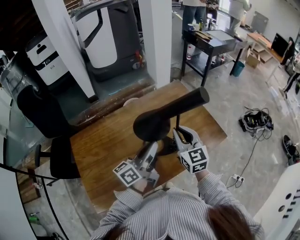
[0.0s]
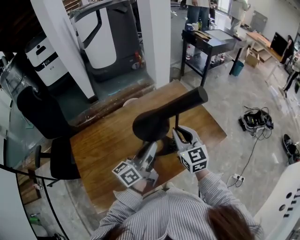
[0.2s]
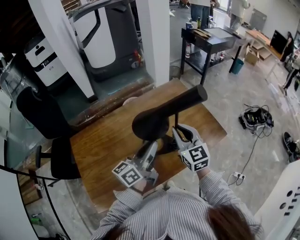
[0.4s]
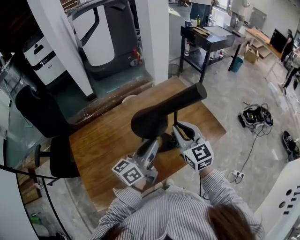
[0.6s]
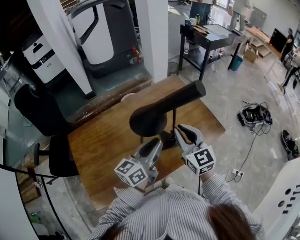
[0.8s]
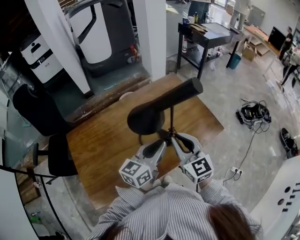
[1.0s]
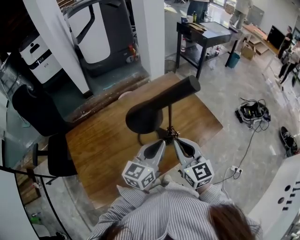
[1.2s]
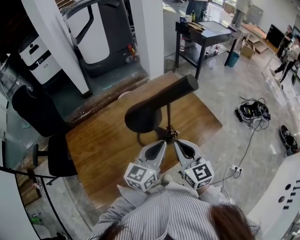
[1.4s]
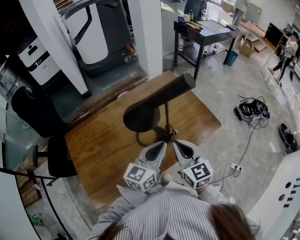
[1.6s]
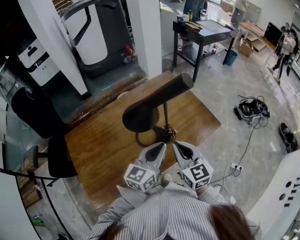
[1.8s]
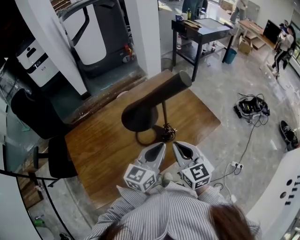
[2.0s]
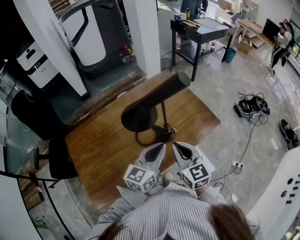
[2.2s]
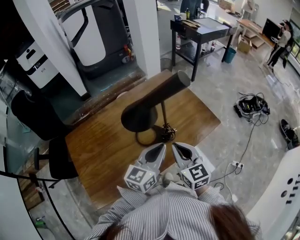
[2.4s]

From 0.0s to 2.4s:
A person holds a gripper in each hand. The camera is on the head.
From 0.0s to 1.2s: The right gripper moves backward, about 10 cm; the left gripper heads to the right, covering some 5 cm, and swivels about 30 degrees.
From 1.2s to 2.4s: The grippers move only a little.

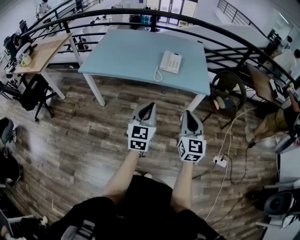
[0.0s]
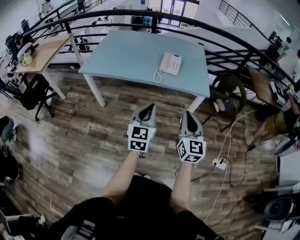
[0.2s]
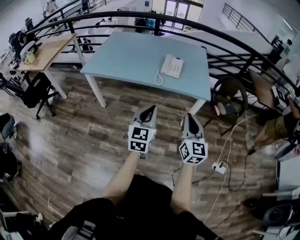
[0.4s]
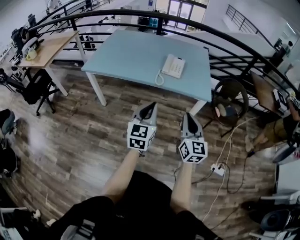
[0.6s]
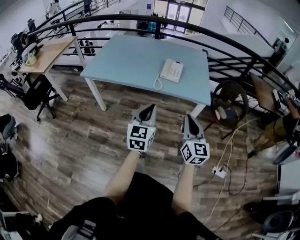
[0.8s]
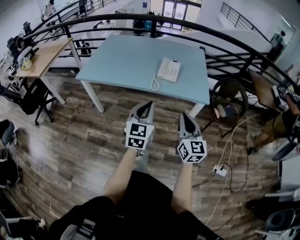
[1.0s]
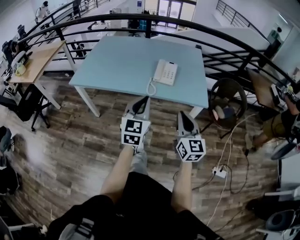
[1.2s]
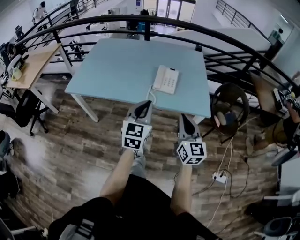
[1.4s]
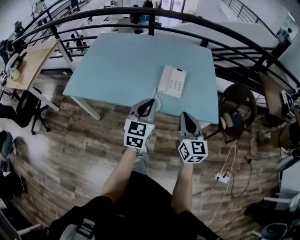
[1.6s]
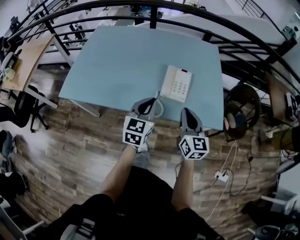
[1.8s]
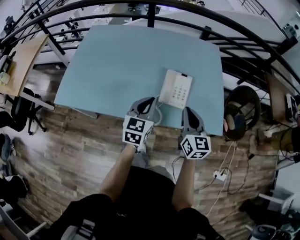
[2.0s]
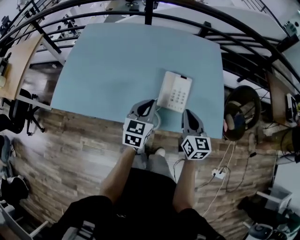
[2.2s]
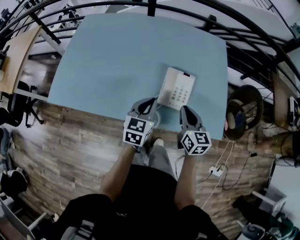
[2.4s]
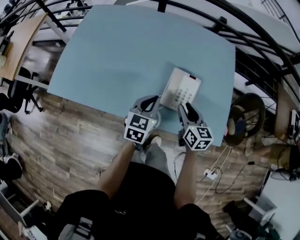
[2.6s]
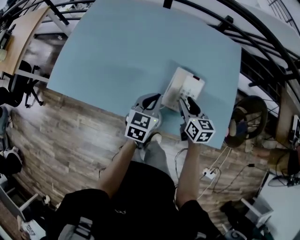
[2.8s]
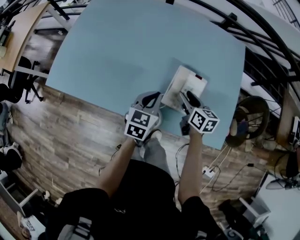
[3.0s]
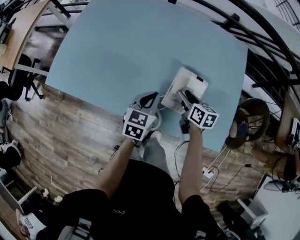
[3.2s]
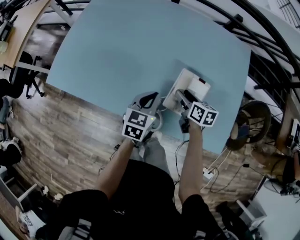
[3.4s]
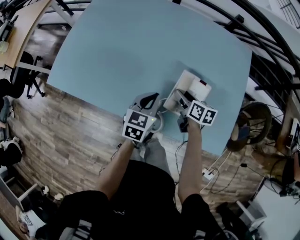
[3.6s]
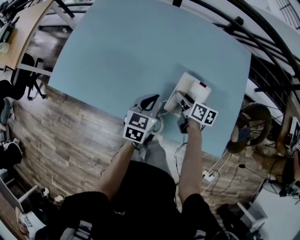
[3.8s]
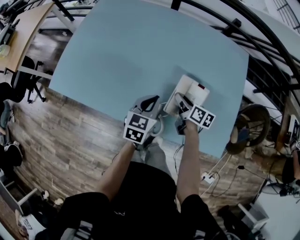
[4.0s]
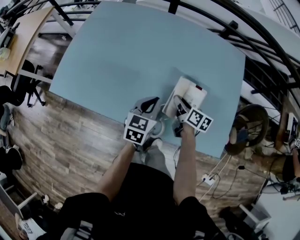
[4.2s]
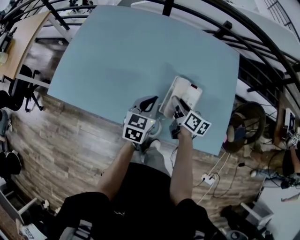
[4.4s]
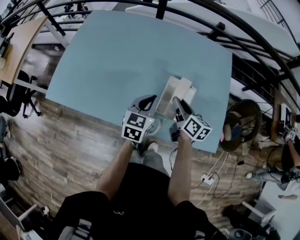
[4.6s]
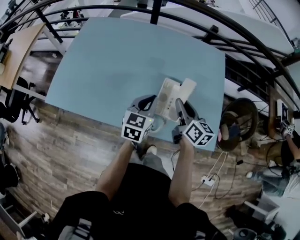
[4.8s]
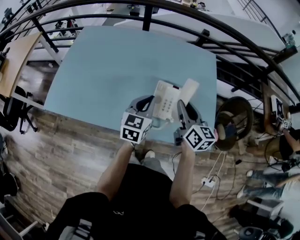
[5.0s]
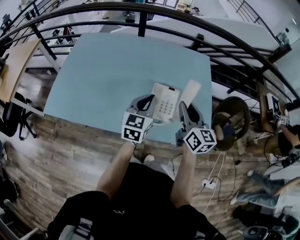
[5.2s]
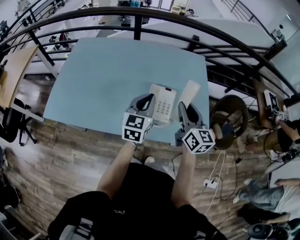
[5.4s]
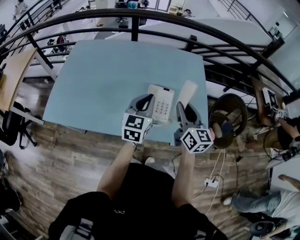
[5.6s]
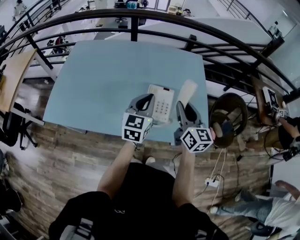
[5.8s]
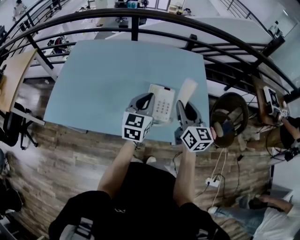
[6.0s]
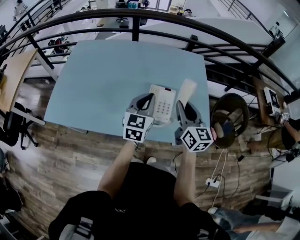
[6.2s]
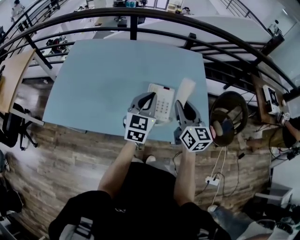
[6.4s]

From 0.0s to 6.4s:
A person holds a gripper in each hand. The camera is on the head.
From 0.0s to 1.6s: Both grippers travel together forward, roughly 30 cm.
From 1.6s to 3.2s: The two grippers go about 35 cm forward and downward. The left gripper turns by roughly 30 degrees; the right gripper angles its fingers downward, by some 30 degrees, and opens.
From 3.2s to 4.8s: The right gripper is displaced upward by some 15 cm, swivels roughly 20 degrees, and closes up, while the left gripper shifts some 10 cm upward.
From 4.8s to 6.4s: The left gripper moves upward, about 10 cm, while the right gripper travels upward and backward by about 10 cm, and swivels some 30 degrees.

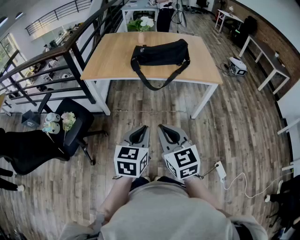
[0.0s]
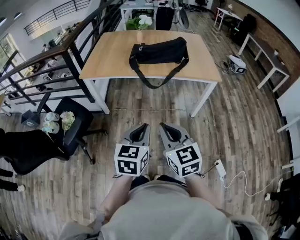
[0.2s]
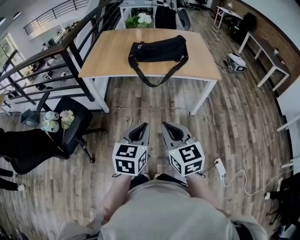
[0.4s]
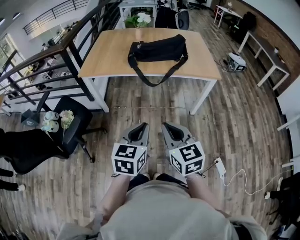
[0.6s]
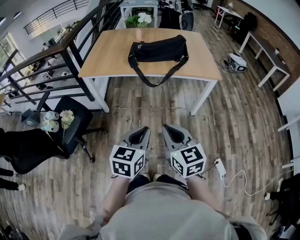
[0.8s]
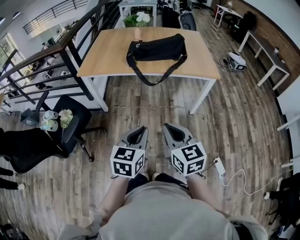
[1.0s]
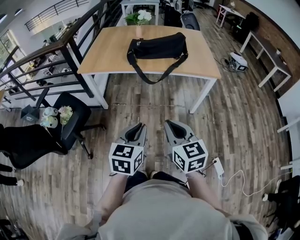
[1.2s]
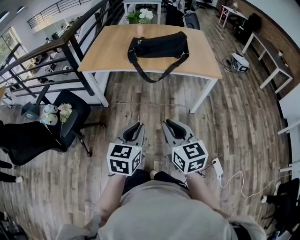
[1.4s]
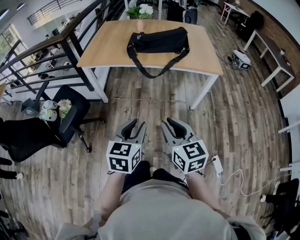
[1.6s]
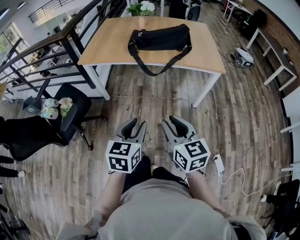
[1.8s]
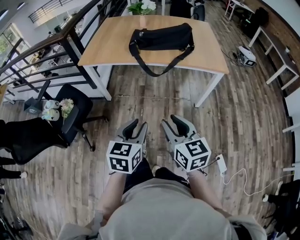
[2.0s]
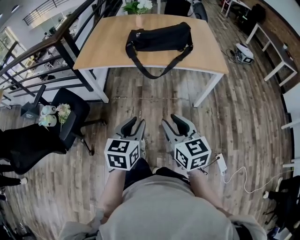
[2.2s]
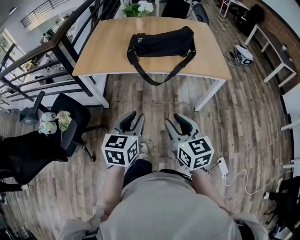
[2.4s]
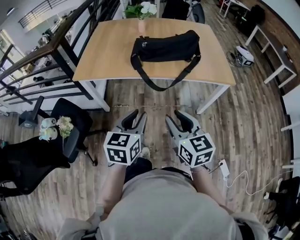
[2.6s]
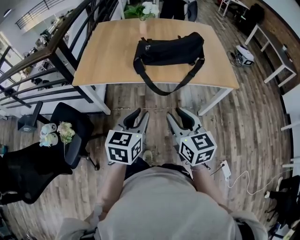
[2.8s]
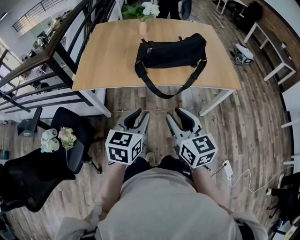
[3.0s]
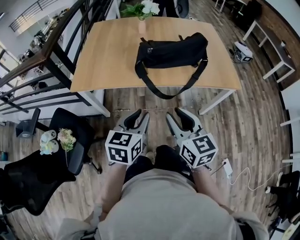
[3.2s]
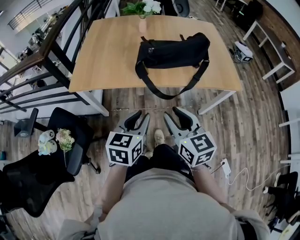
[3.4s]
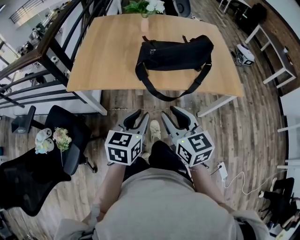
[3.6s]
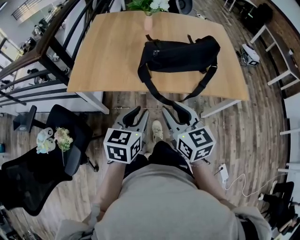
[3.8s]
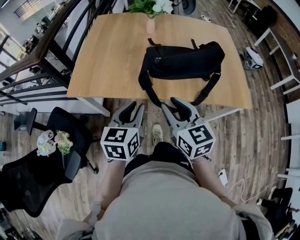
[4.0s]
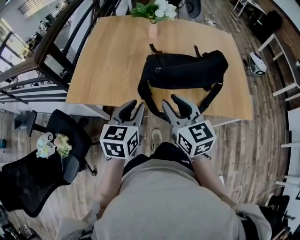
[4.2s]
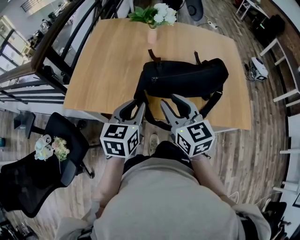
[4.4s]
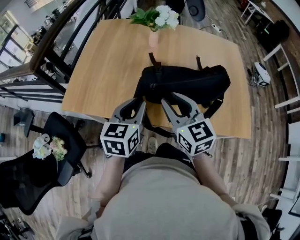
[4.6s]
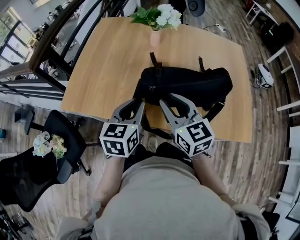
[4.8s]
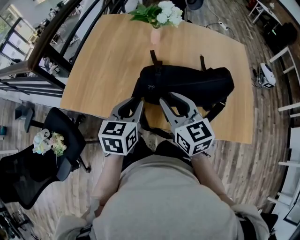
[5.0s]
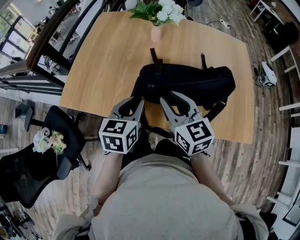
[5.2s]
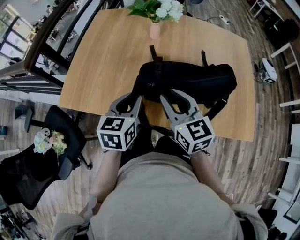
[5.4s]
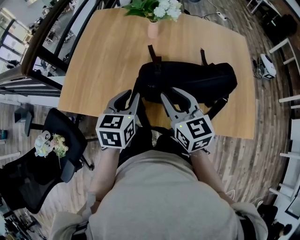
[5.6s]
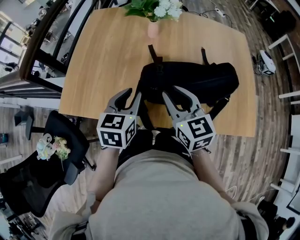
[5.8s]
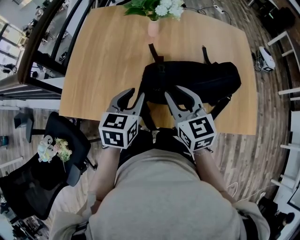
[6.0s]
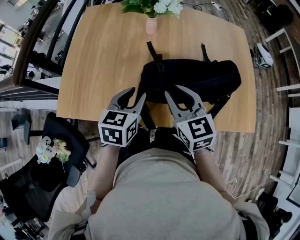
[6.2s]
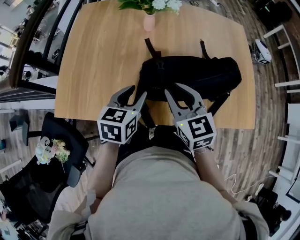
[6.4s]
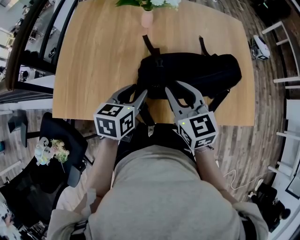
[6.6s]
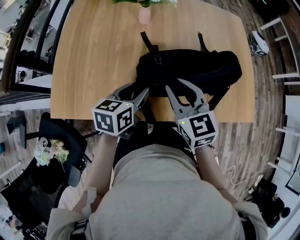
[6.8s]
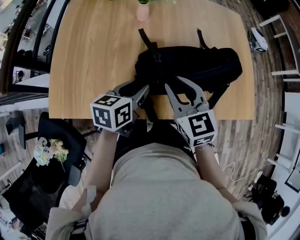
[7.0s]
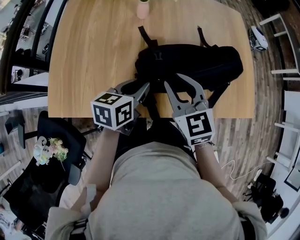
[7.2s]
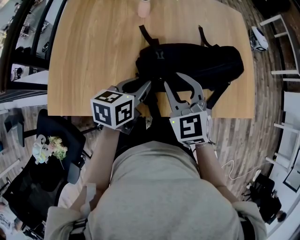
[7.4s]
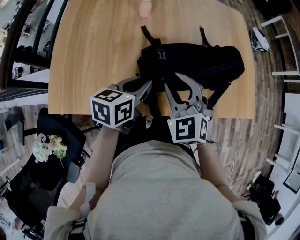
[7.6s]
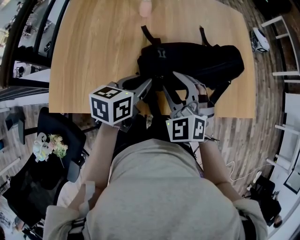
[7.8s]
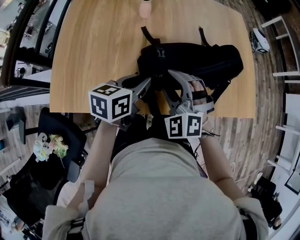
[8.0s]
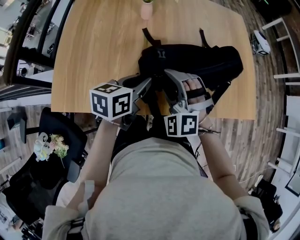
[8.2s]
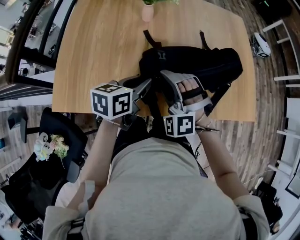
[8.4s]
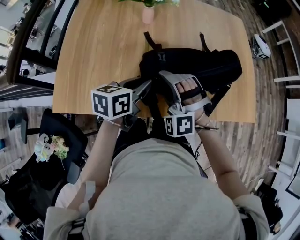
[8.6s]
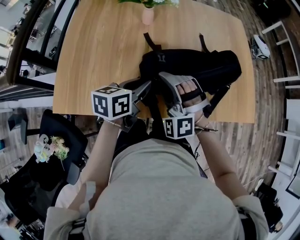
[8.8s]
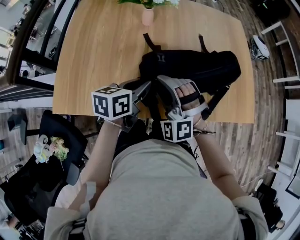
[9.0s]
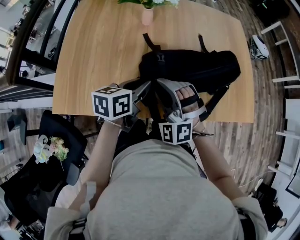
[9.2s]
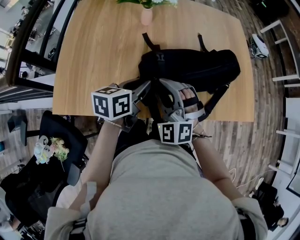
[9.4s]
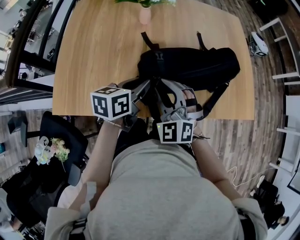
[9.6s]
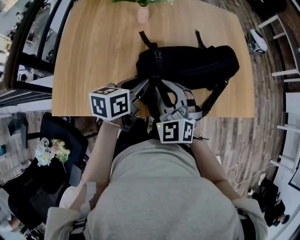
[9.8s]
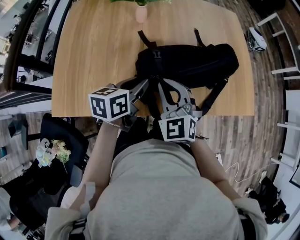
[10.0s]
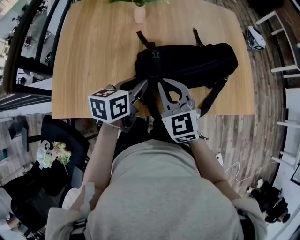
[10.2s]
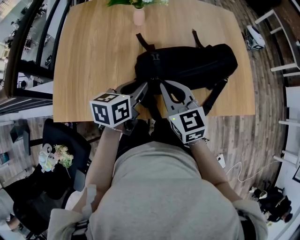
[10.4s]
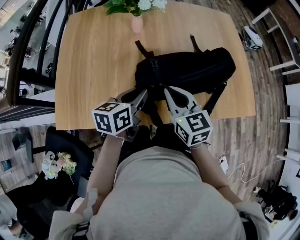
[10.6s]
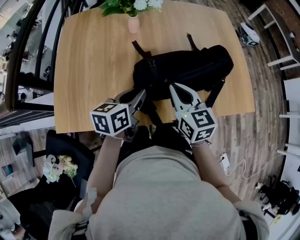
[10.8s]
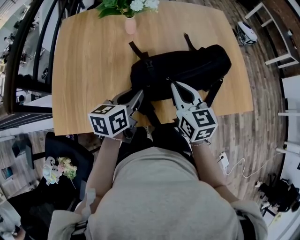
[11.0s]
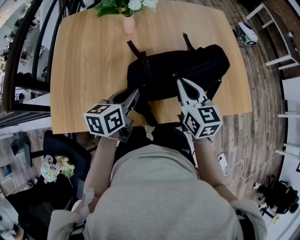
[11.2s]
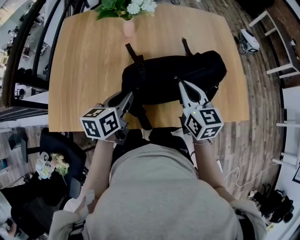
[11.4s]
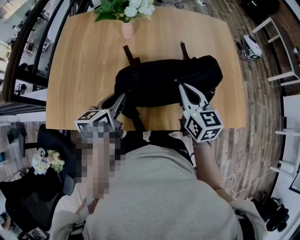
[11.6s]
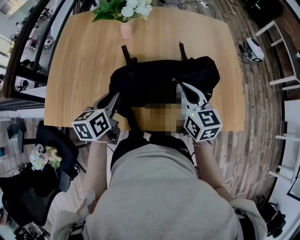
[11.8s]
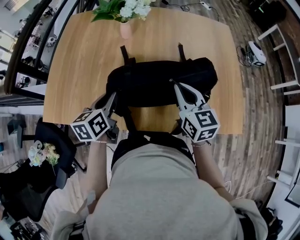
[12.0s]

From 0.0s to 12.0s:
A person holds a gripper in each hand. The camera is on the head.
From 0.0s to 1.6s: The right gripper moves to the right, about 5 cm, and opens up.
From 1.6s to 3.0s: The grippers both shift forward by about 25 cm.
From 3.0s to 4.4s: The grippers both shift forward by about 25 cm.
From 4.4s to 6.0s: Both grippers move forward, some 10 cm.
From 6.0s to 7.6s: The left gripper changes place by some 5 cm, and swivels some 30 degrees; the right gripper changes its angle by approximately 40 degrees.
From 7.6s to 9.0s: The right gripper turns by some 40 degrees.
From 9.0s to 10.4s: The right gripper rolls clockwise, seen from behind, by roughly 70 degrees, and closes up.
From 10.4s to 12.0s: The right gripper heads to the right and forward, covering about 15 cm. Meanwhile the left gripper swivels some 20 degrees.

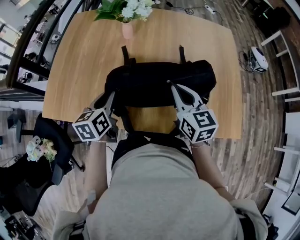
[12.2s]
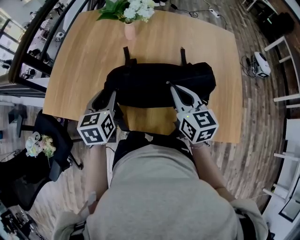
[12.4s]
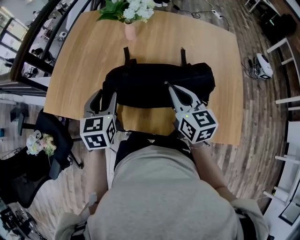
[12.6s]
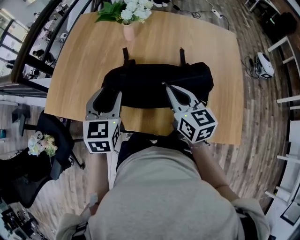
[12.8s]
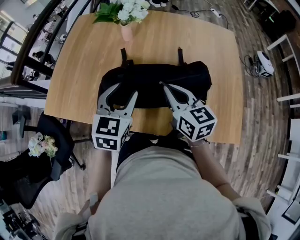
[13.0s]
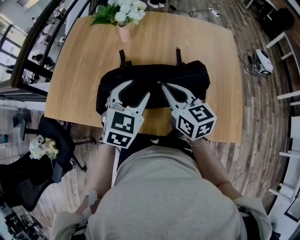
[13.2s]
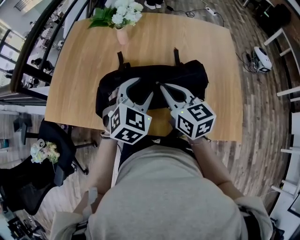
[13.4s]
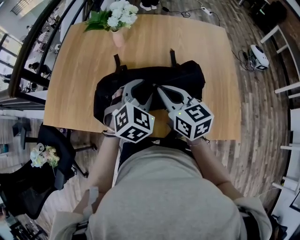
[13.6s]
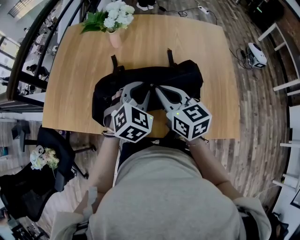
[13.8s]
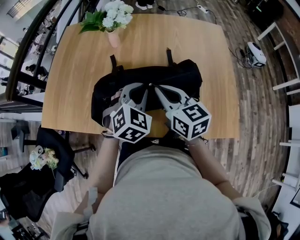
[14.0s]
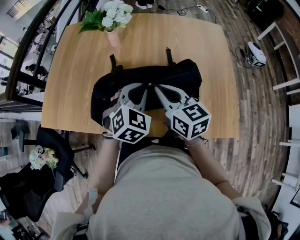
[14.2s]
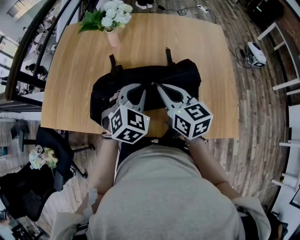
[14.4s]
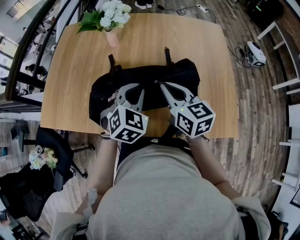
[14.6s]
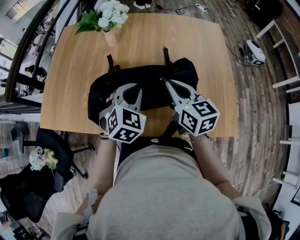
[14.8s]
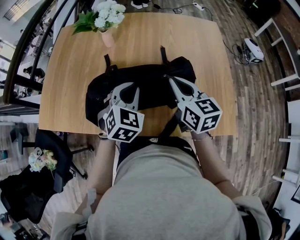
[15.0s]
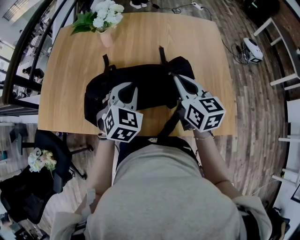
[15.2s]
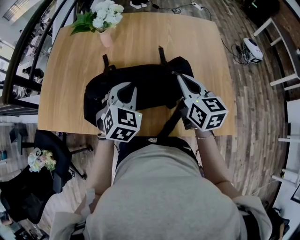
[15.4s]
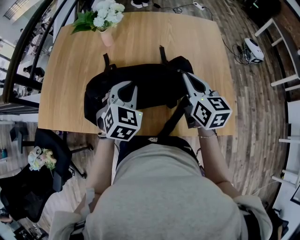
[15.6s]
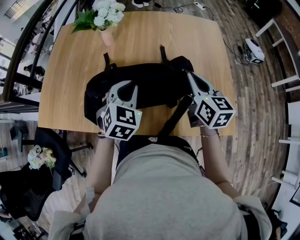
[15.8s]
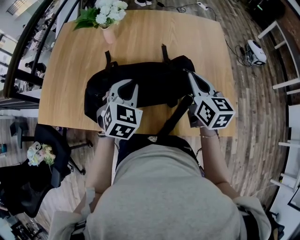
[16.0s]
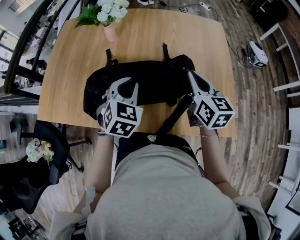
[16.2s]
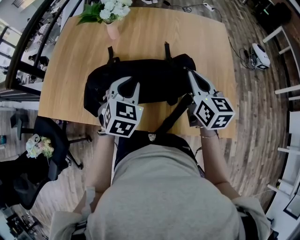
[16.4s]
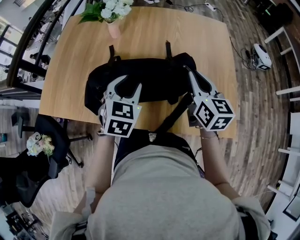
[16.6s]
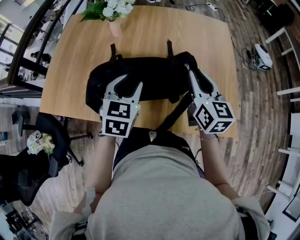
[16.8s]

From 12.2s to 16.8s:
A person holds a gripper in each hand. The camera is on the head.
From 12.2s to 13.8s: The left gripper travels to the right by some 20 cm, rotates around the line of its fingers by roughly 60 degrees, clockwise from behind, and opens, then closes once more.
From 13.8s to 15.2s: The right gripper is displaced to the right by approximately 10 cm.
From 15.2s to 16.8s: The left gripper changes its angle by about 20 degrees, and opens up.
